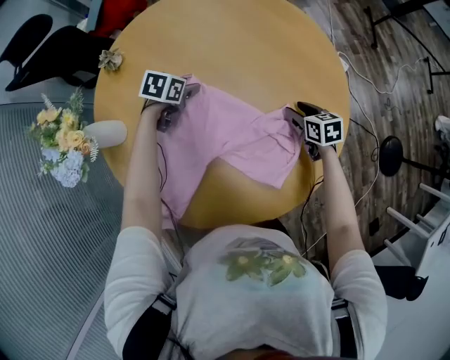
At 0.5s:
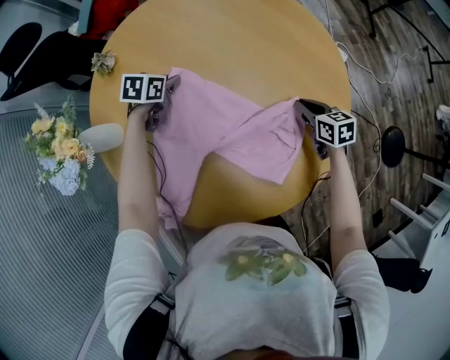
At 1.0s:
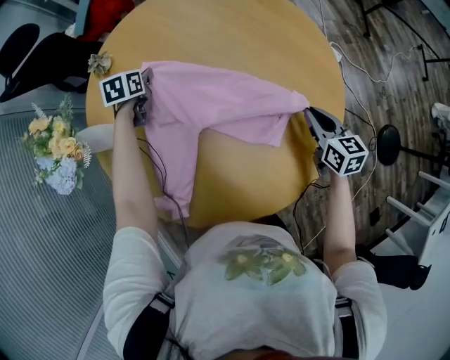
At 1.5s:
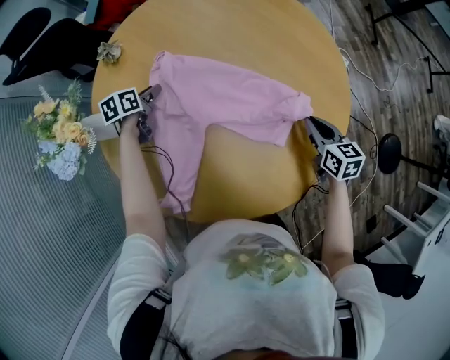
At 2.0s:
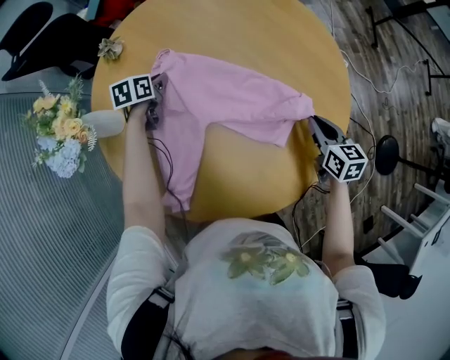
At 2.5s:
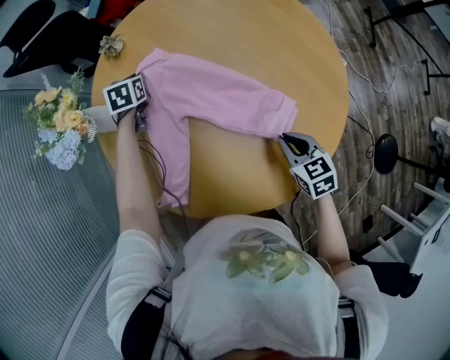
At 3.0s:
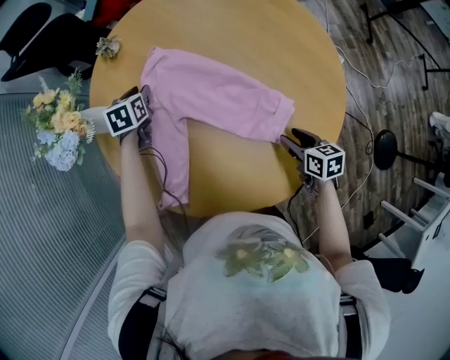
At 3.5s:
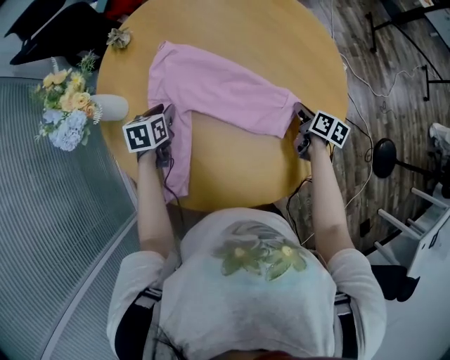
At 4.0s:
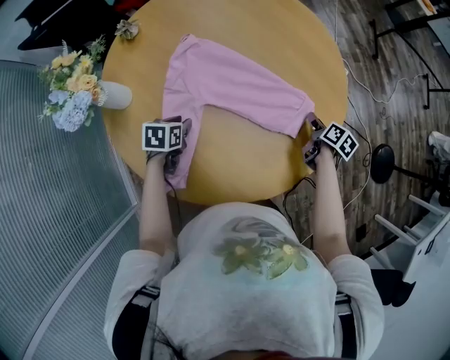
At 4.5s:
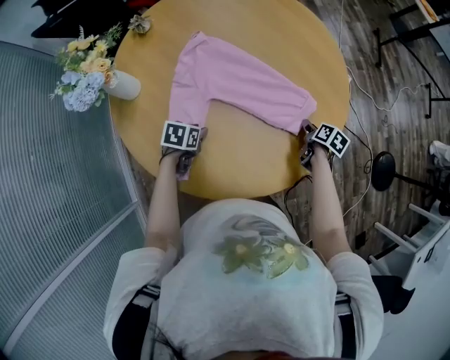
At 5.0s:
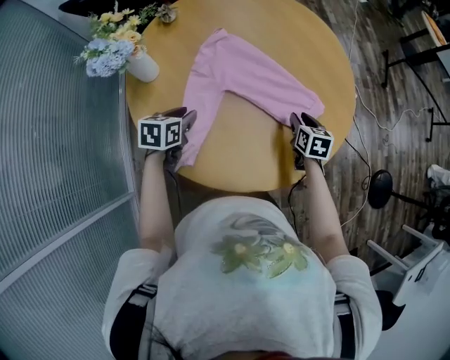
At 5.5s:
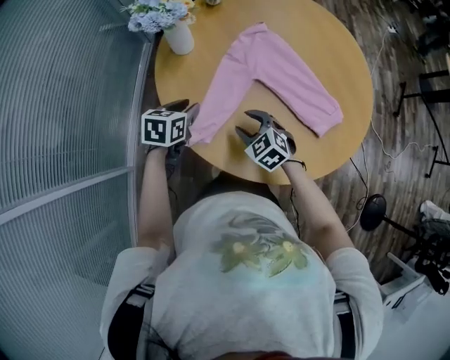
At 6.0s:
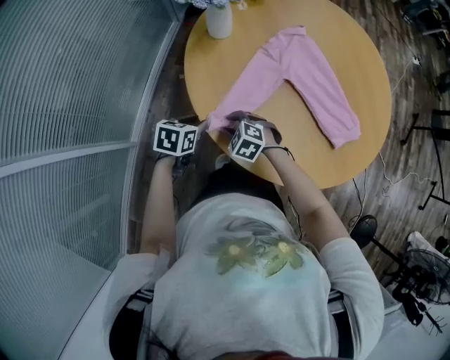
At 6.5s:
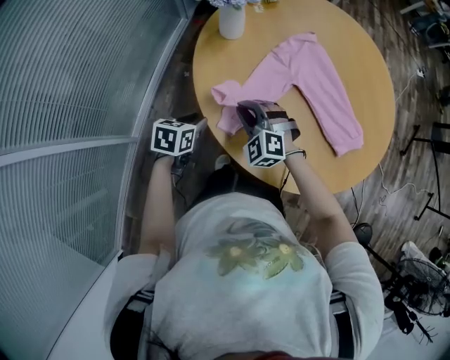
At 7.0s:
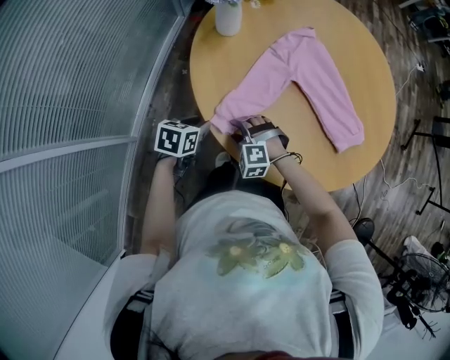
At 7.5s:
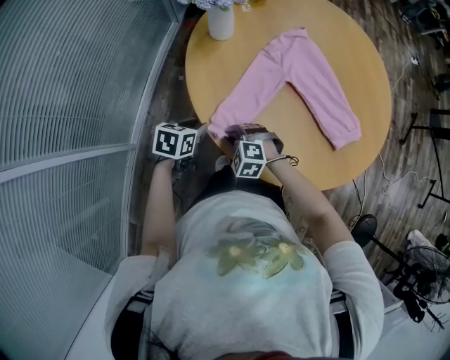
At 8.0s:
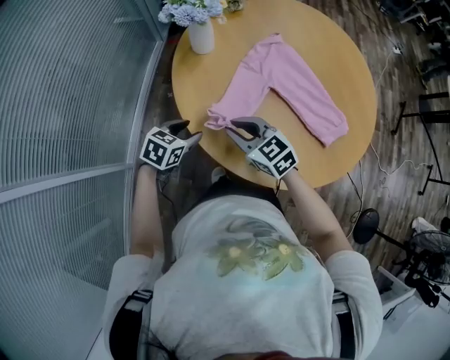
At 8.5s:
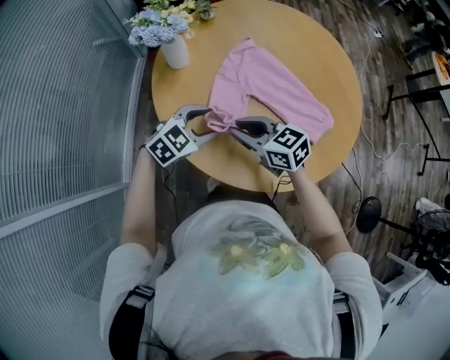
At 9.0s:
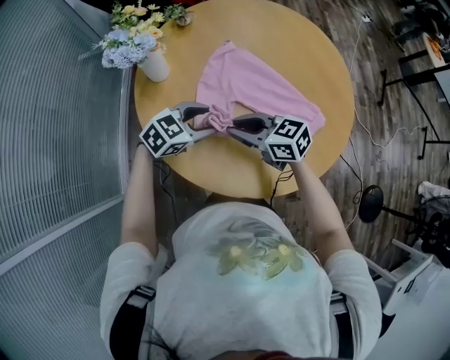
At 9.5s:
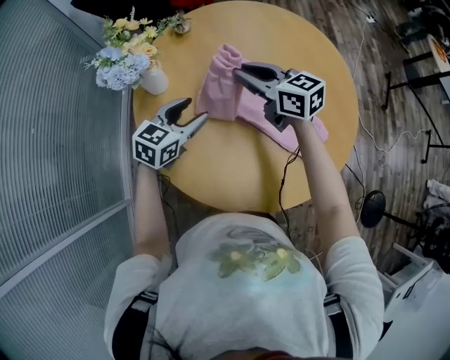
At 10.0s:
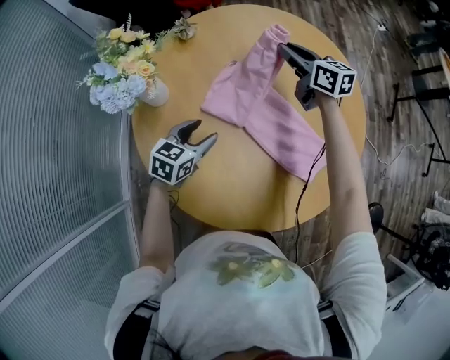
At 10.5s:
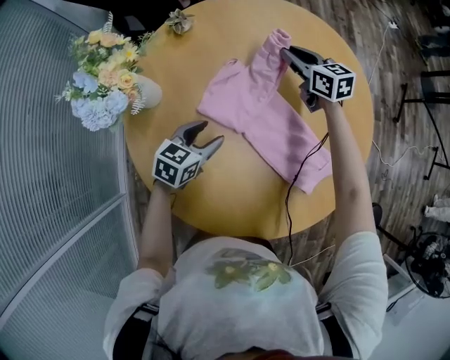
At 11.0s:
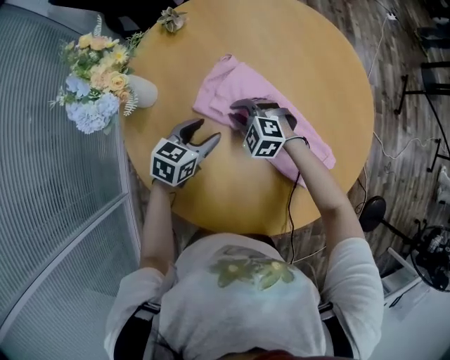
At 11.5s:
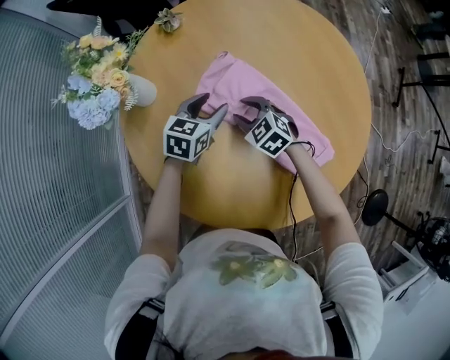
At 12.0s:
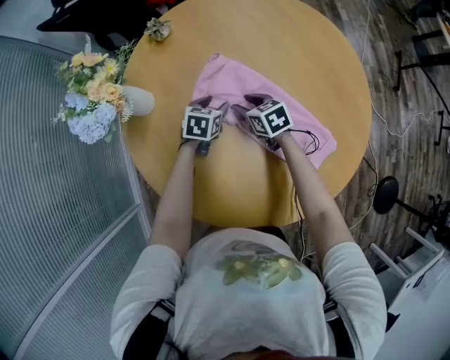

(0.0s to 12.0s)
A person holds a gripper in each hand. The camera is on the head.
0.0s - 2.0s: The right gripper is displaced upward and backward by some 10 cm, and closes its fingers. The left gripper shifts about 10 cm to the left, rotates about 30 degrees, and closes.
2.0s - 4.0s: The right gripper is displaced downward by approximately 10 cm, swivels some 40 degrees, and opens its fingers; the left gripper ends up roughly 25 cm from where it was.
4.0s - 6.0s: The right gripper moves about 5 cm upward and comes back, and rotates around the line of its fingers by some 120 degrees, counterclockwise from behind. The left gripper moves roughly 10 cm upward and comes back, and changes its angle by about 20 degrees.
6.0s - 8.0s: The left gripper swivels some 20 degrees. The right gripper swings up and down, about 15 cm each way, with 2 reversals, and rotates some 40 degrees.
8.0s - 10.0s: The right gripper ends up some 50 cm from where it was, and changes its angle by roughly 40 degrees. Meanwhile the left gripper reaches about 10 cm upward, then returns.
10.0s - 12.0s: The left gripper heads downward, forward and to the right, covering roughly 15 cm. The right gripper shifts roughly 25 cm downward and backward, changes its angle by some 30 degrees, and opens its fingers.

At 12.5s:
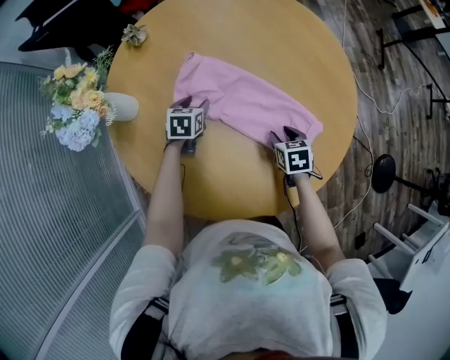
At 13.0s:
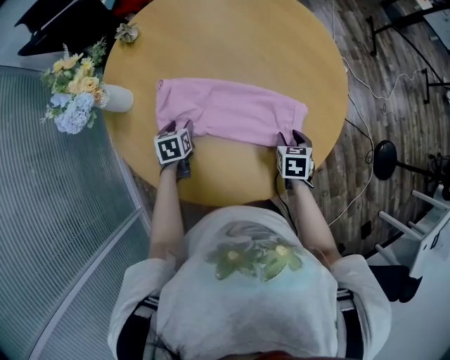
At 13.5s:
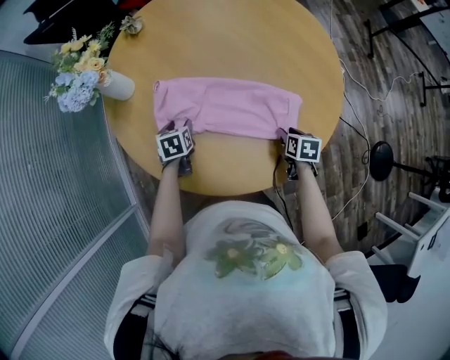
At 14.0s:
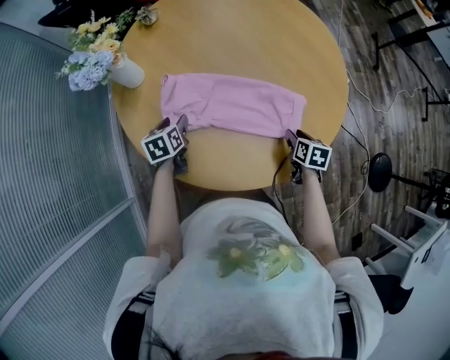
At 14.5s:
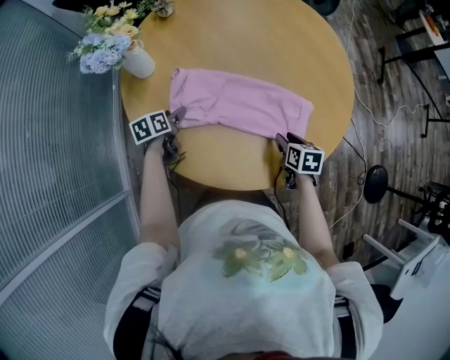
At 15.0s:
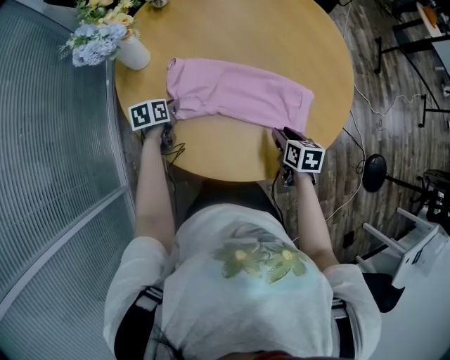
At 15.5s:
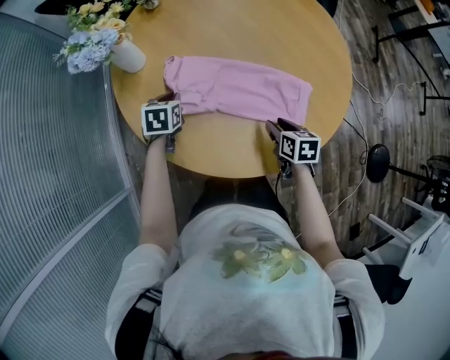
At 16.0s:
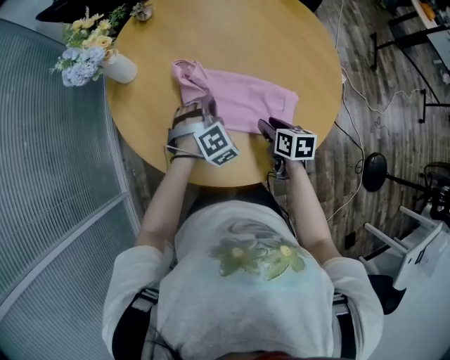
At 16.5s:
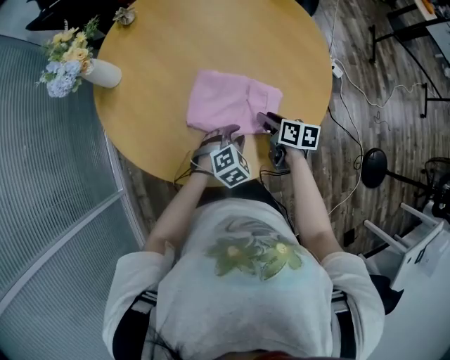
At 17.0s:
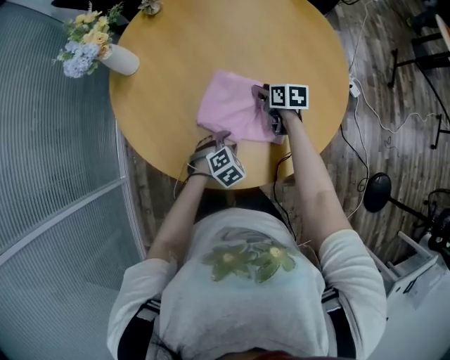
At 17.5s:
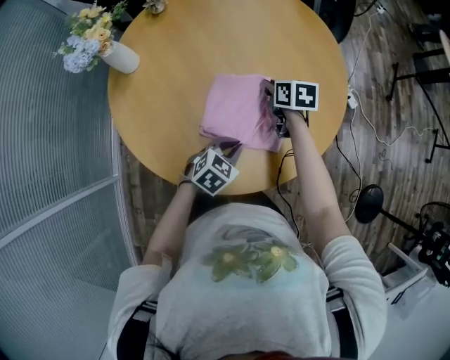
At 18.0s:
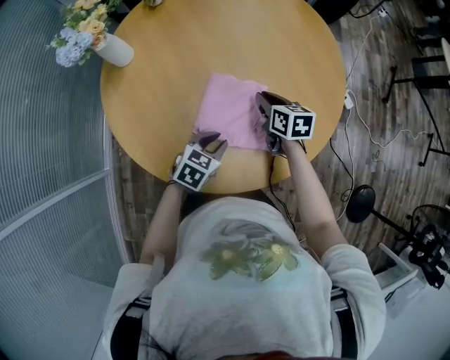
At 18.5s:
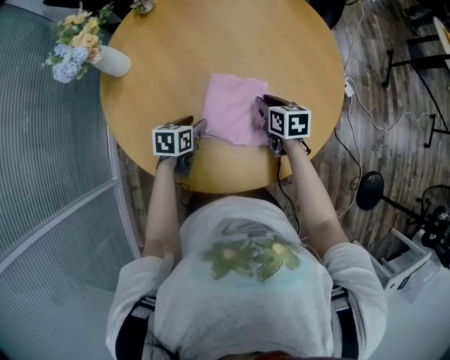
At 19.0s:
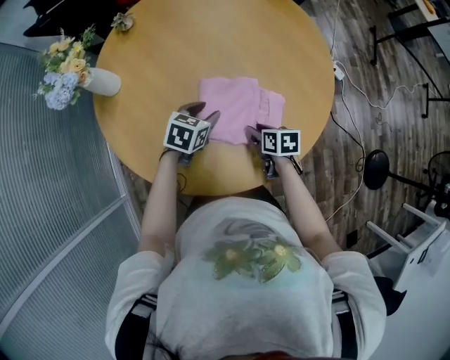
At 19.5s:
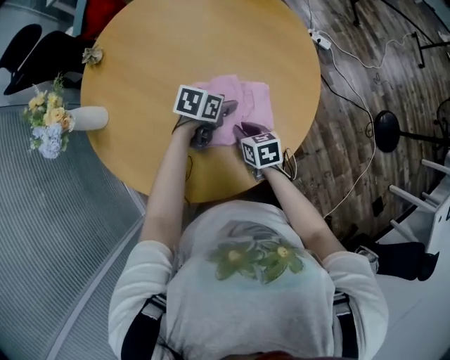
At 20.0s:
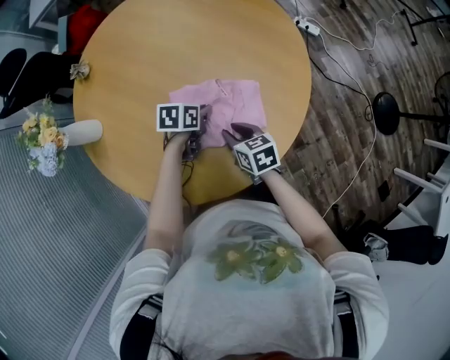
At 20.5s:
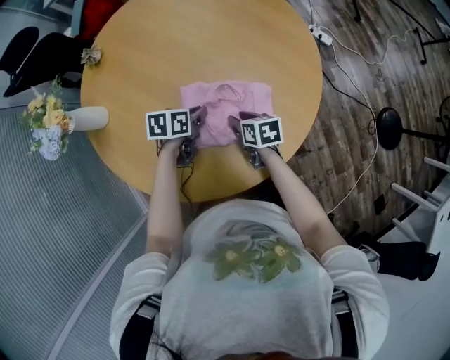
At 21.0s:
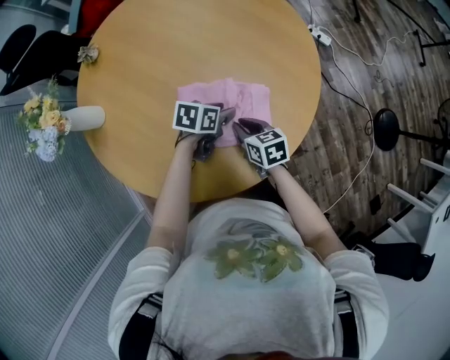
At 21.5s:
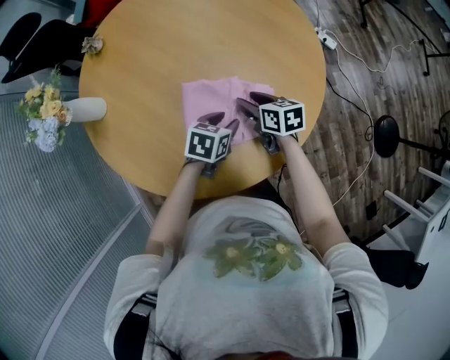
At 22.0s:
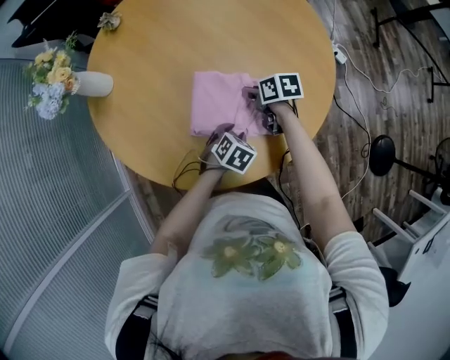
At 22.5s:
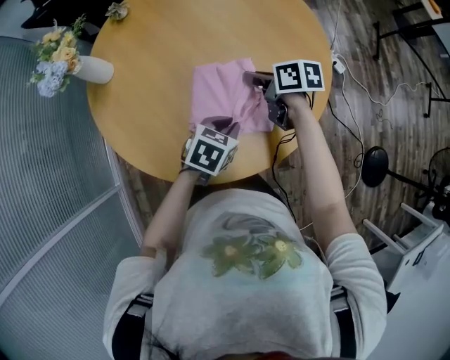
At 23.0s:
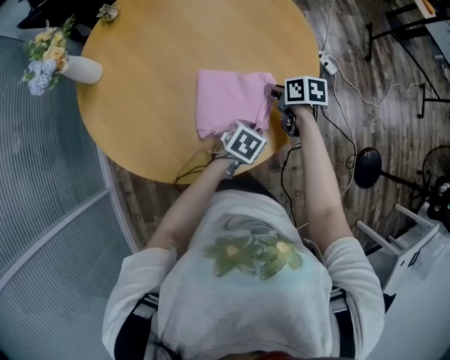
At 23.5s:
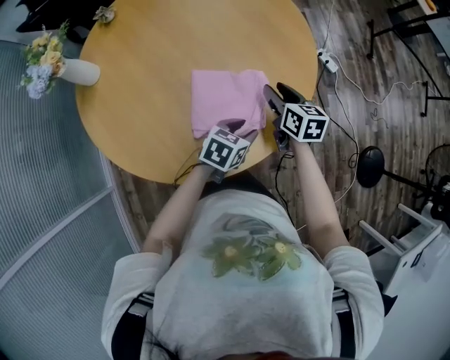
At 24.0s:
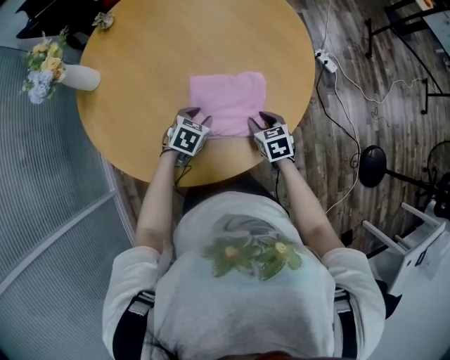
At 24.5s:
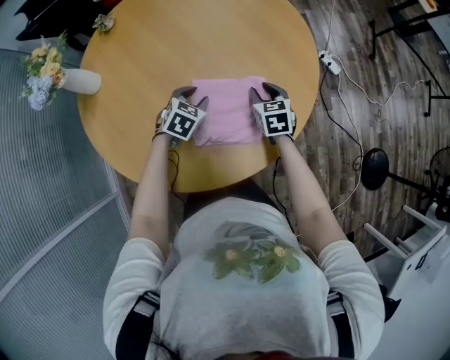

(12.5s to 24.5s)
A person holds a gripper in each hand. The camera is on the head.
12.5s - 14.5s: The right gripper travels backward by approximately 10 cm; the left gripper shifts some 20 cm backward and to the left, and turns by some 30 degrees.
14.5s - 16.5s: The right gripper heads to the right, covering roughly 5 cm, and changes its angle by about 20 degrees. The left gripper is displaced to the right by some 35 cm, rotates around the line of its fingers by about 80 degrees, clockwise from behind, and closes.
16.5s - 18.5s: The right gripper moves forward, roughly 10 cm, and changes its angle by some 20 degrees. Meanwhile the left gripper heads to the left and forward, covering roughly 15 cm, and rolls counterclockwise, seen from behind, by approximately 70 degrees.
18.5s - 20.5s: The right gripper moves approximately 10 cm, and swivels about 20 degrees. Meanwhile the left gripper swivels approximately 20 degrees, and closes up.
20.5s - 22.5s: The left gripper moves about 15 cm, changes its angle by some 20 degrees, and opens and closes again, while the right gripper swings up and down, approximately 10 cm each way, with 2 reversals, rotates roughly 20 degrees, and closes up.
22.5s - 24.5s: The left gripper goes some 15 cm forward and downward, moves some 15 cm to the right and comes back, and opens its fingers, while the right gripper shifts approximately 15 cm to the right and downward, changes its angle by some 40 degrees, and opens.

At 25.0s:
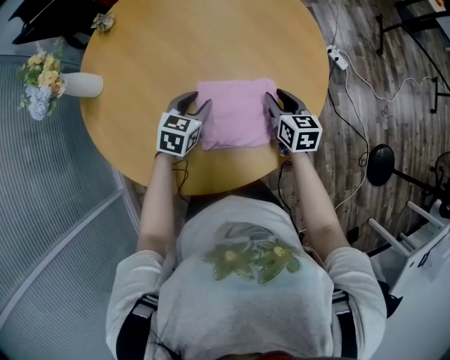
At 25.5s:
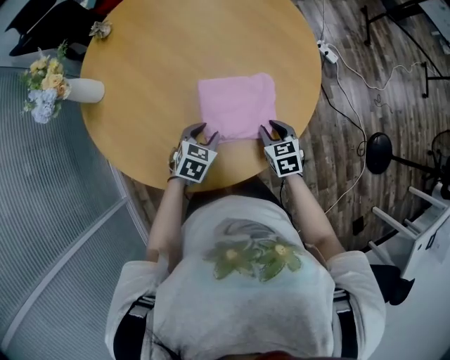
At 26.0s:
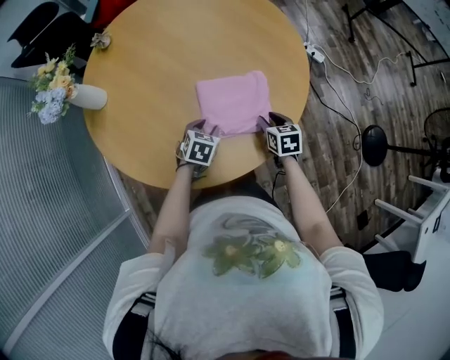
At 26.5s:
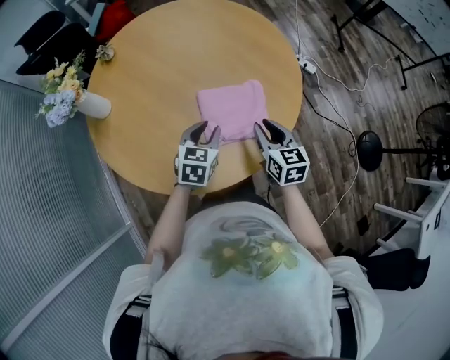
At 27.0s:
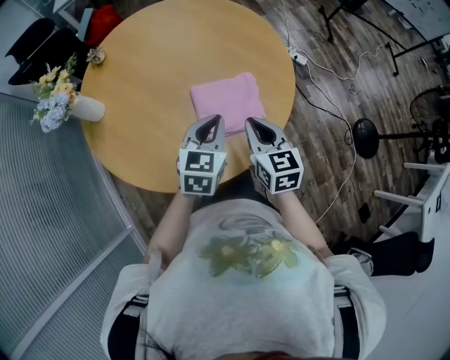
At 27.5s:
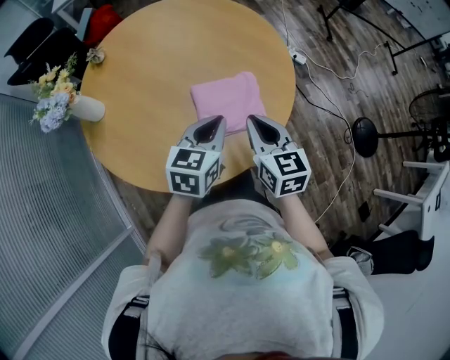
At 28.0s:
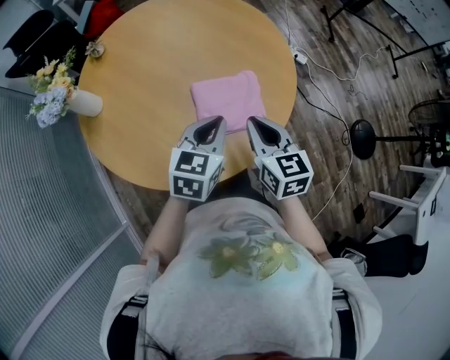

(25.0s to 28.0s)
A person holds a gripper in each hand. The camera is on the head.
25.0s - 26.5s: Both grippers move backward and upward, about 15 cm.
26.5s - 28.0s: Both grippers move upward, approximately 10 cm. The left gripper closes its fingers. Meanwhile the right gripper closes its fingers.
